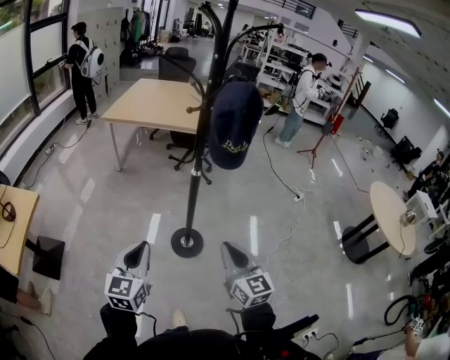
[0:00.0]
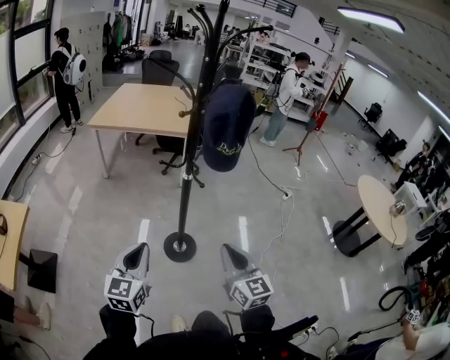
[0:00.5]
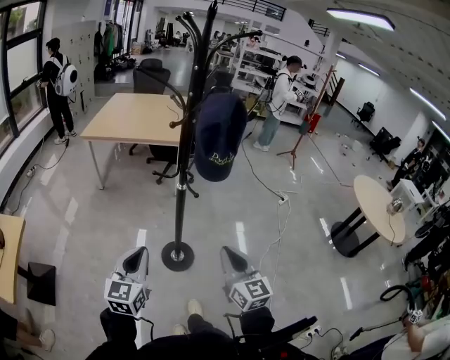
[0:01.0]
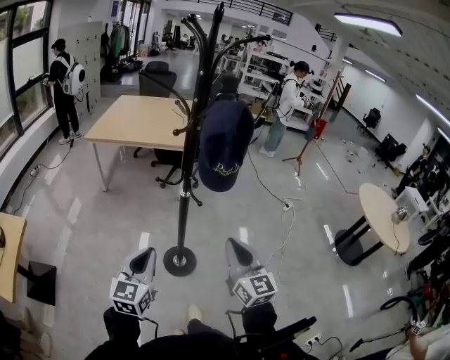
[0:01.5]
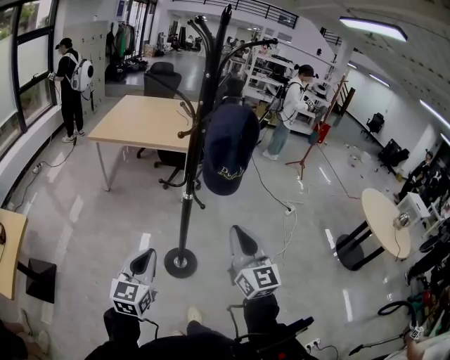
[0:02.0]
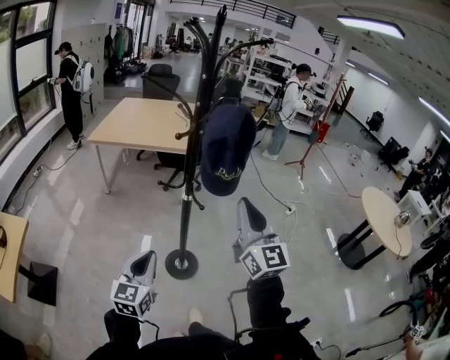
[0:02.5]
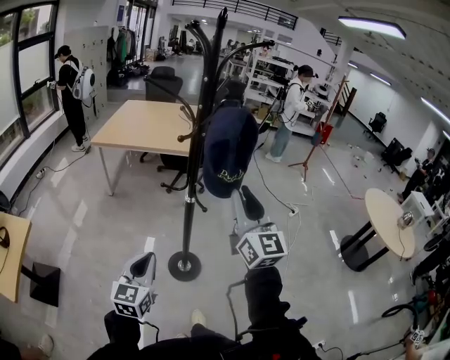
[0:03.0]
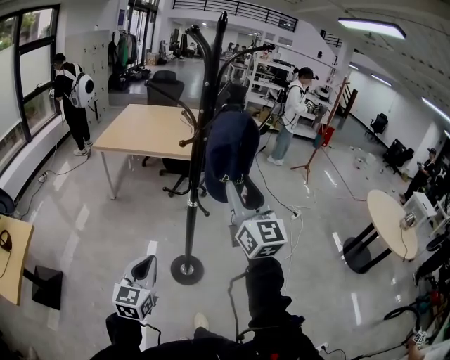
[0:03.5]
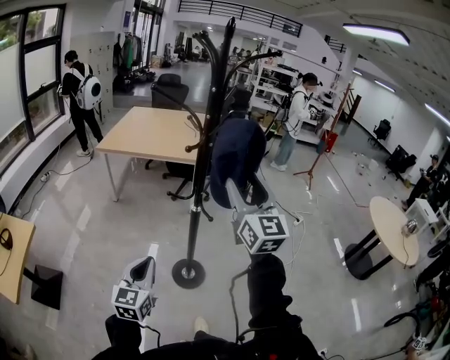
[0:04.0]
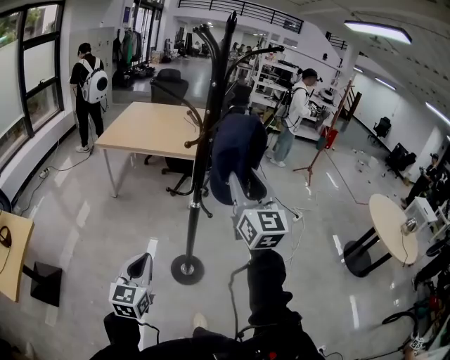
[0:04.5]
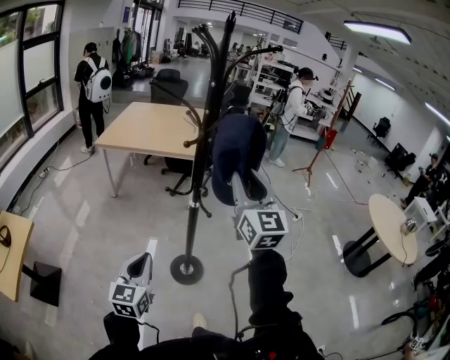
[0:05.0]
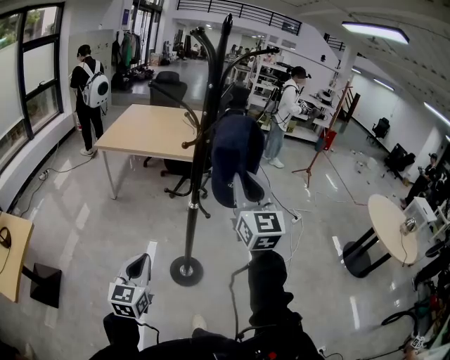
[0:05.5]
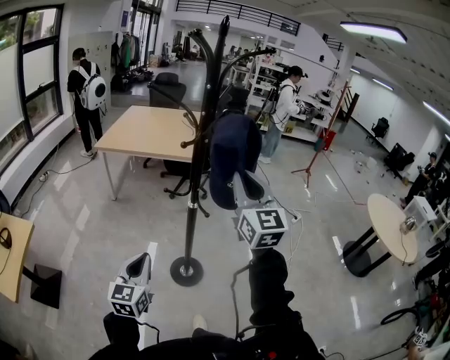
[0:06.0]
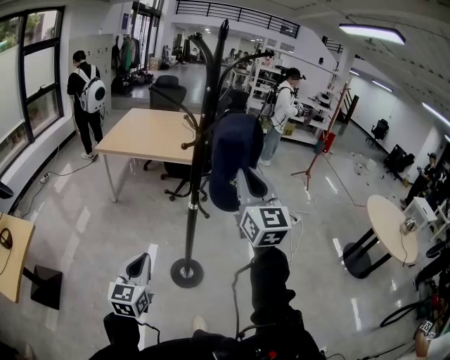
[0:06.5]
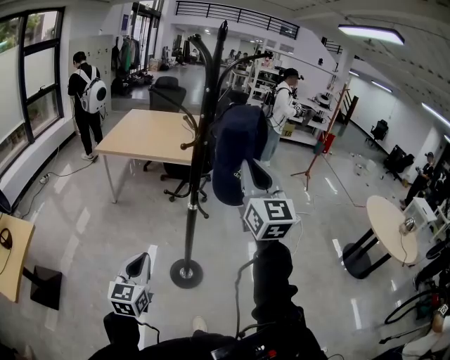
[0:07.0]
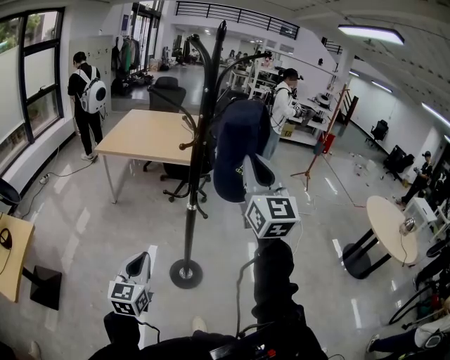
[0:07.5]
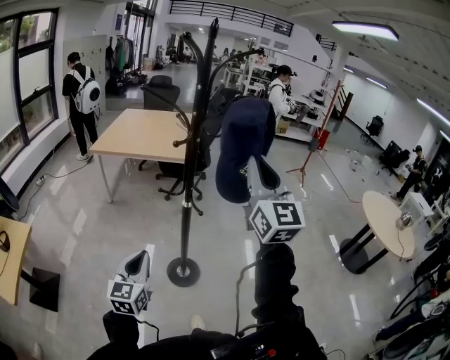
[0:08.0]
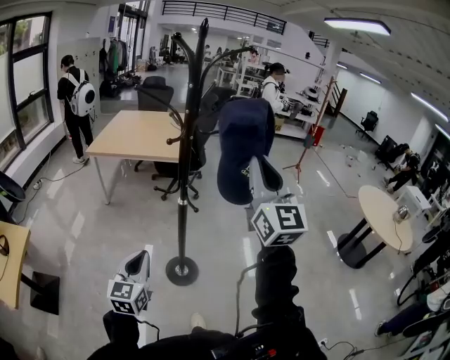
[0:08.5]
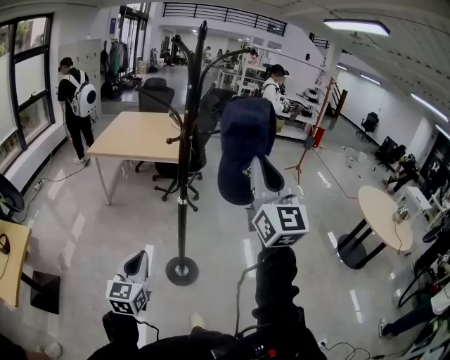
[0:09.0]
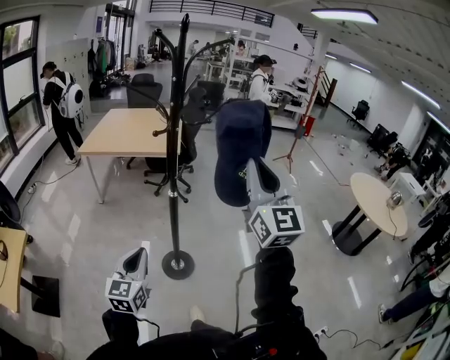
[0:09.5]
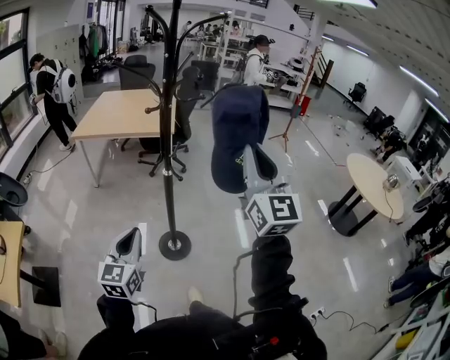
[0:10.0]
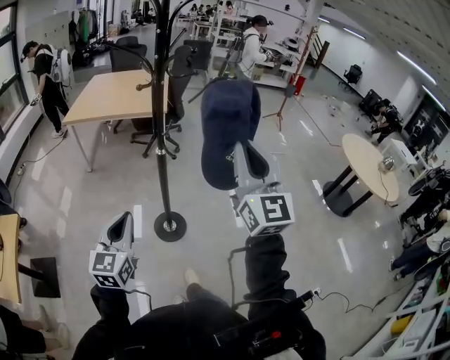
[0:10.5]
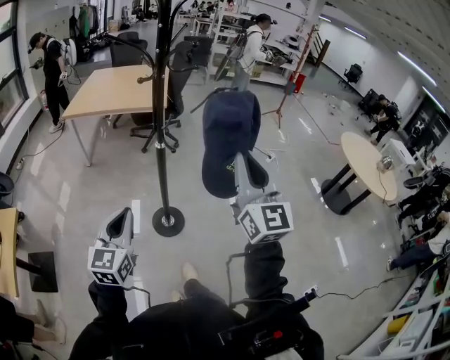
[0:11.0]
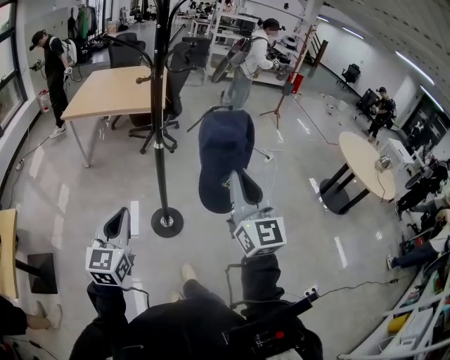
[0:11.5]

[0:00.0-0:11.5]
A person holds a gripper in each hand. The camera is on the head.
0:00.0 to 0:02.0: The right gripper goes some 15 cm upward and forward, while the left gripper heads forward, covering roughly 10 cm.
0:02.0 to 0:04.0: The right gripper goes approximately 15 cm upward and forward, and opens.
0:04.0 to 0:06.0: The right gripper closes.
0:06.0 to 0:07.5: The right gripper moves upward, roughly 5 cm.
0:07.5 to 0:09.5: The left gripper changes place by roughly 5 cm, while the right gripper travels backward and to the right by approximately 10 cm.
0:09.5 to 0:11.5: The right gripper shifts roughly 15 cm downward and backward.

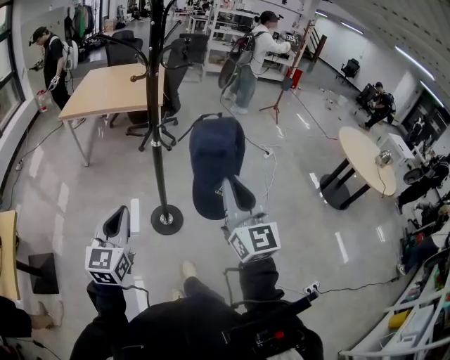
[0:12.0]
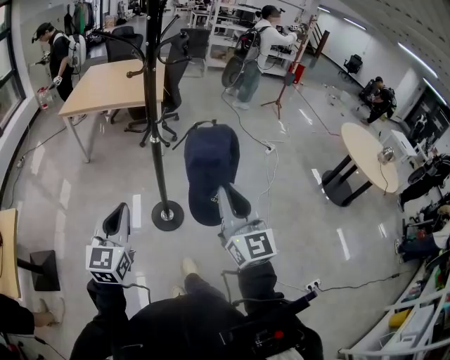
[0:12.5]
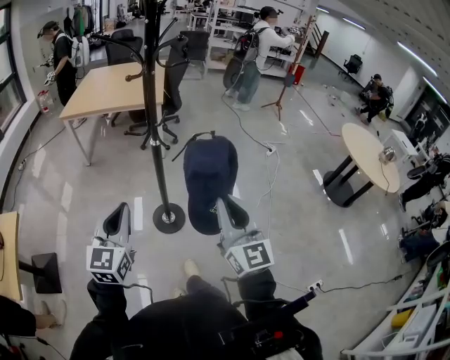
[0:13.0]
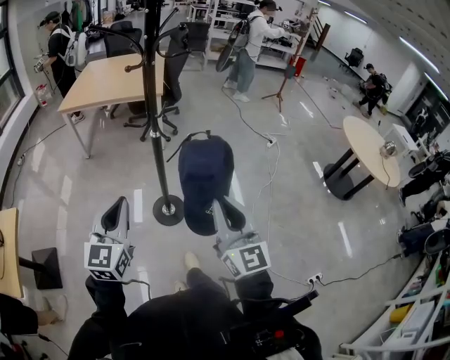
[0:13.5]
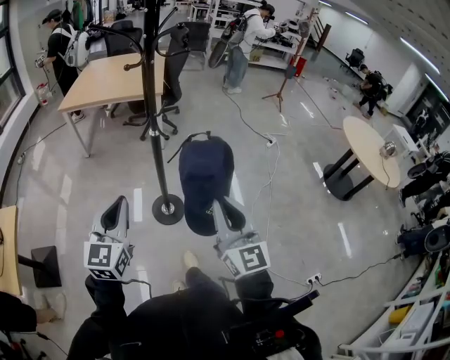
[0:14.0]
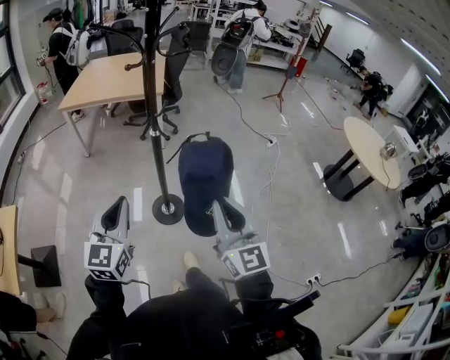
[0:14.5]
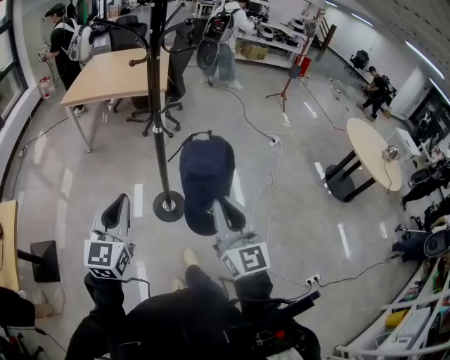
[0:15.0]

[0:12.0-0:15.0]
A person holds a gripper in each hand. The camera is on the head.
0:12.0 to 0:13.5: The right gripper heads downward, covering about 5 cm.
0:13.5 to 0:15.0: Both grippers stay about where they are.

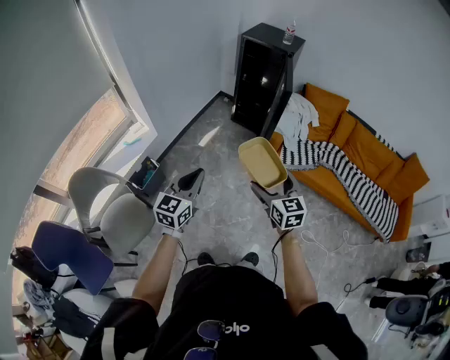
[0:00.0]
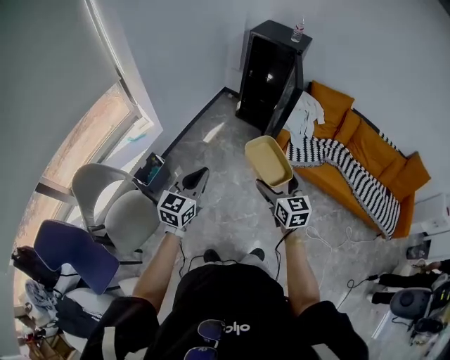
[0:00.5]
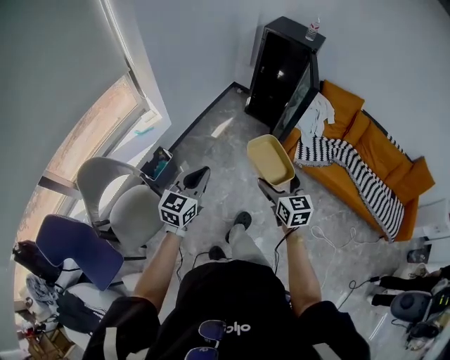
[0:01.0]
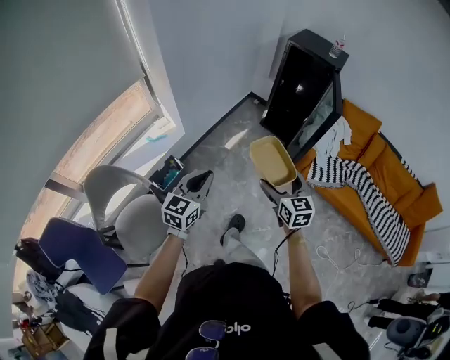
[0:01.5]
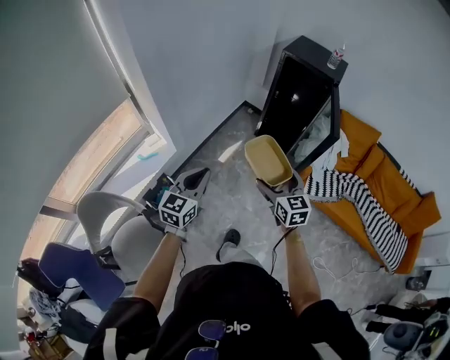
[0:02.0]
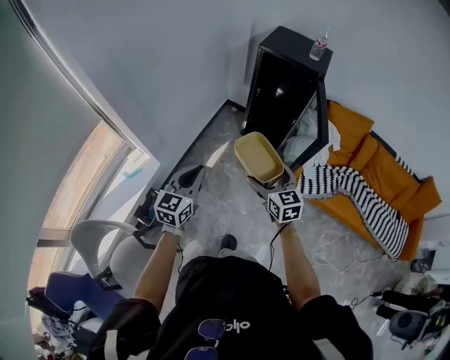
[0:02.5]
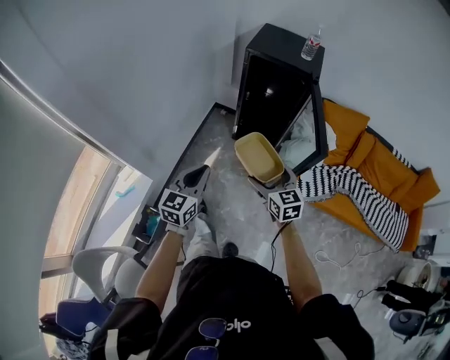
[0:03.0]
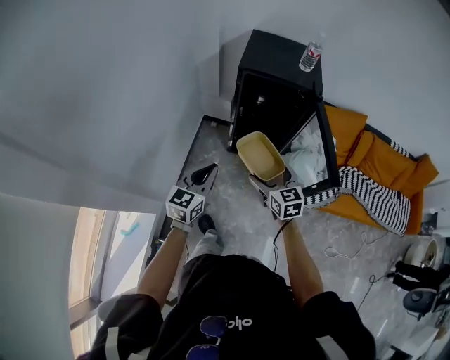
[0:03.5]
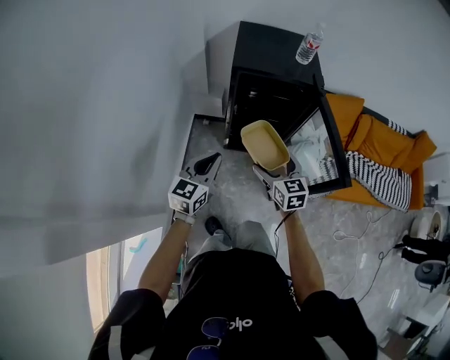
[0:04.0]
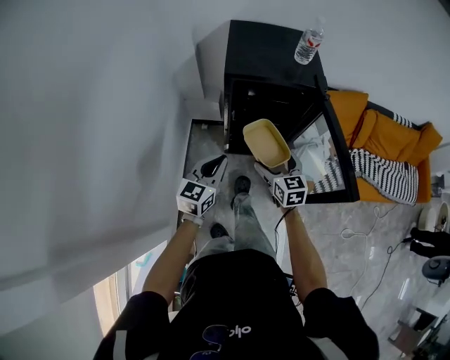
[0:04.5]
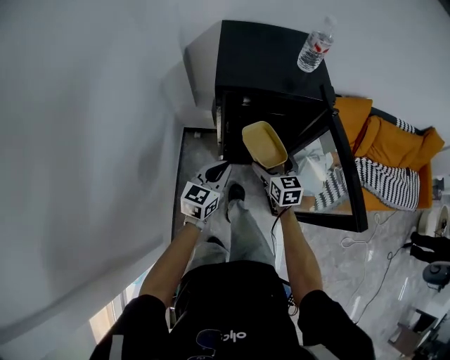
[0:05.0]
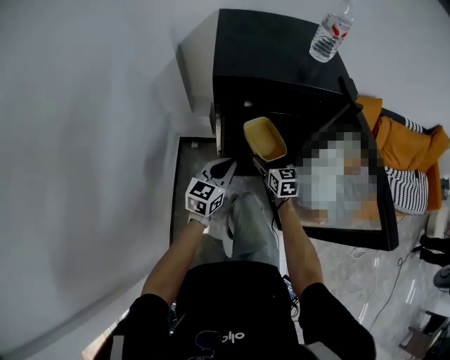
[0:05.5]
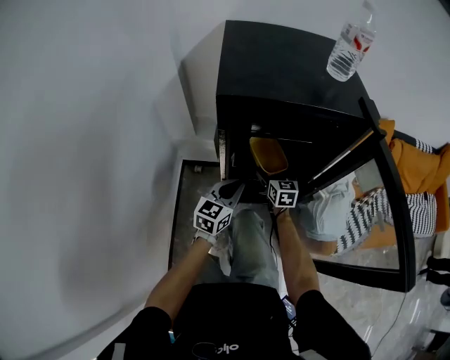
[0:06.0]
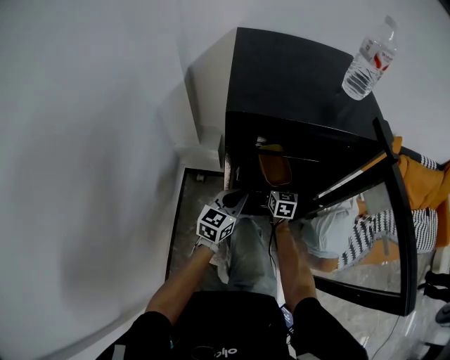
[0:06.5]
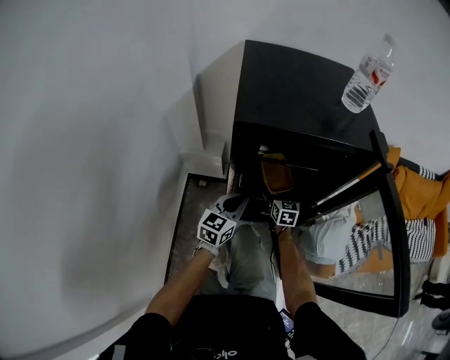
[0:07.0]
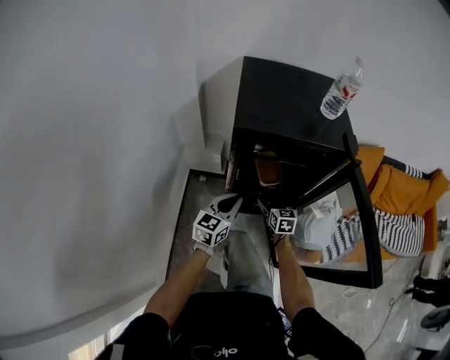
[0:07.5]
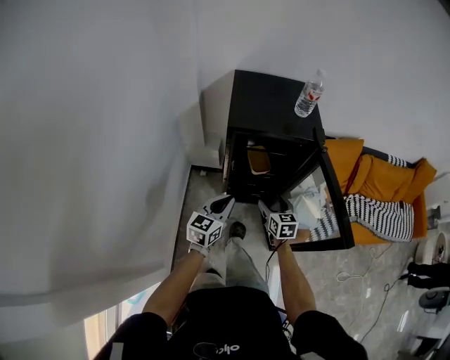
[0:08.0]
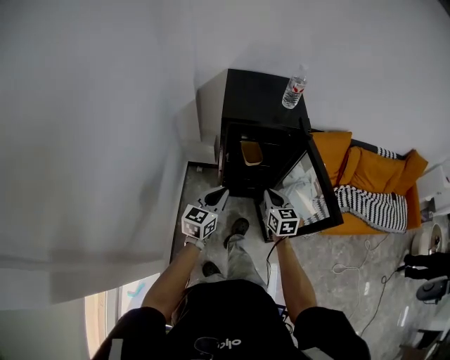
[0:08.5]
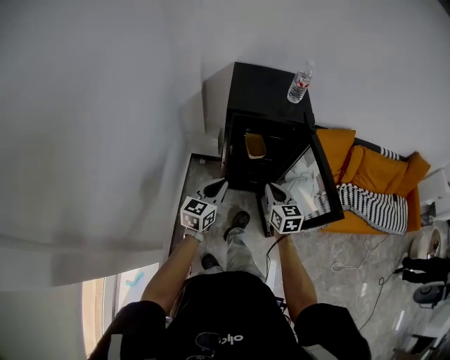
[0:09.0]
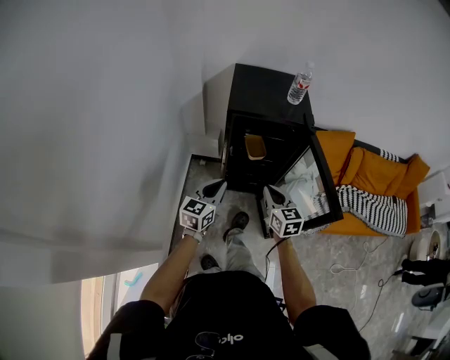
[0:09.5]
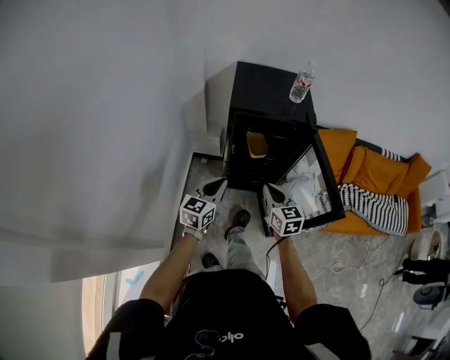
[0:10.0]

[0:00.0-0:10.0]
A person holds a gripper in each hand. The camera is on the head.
0:00.0 to 0:02.0: The two grippers go approximately 30 cm forward and to the left.
0:02.0 to 0:04.0: Both grippers are carried about 50 cm. The left gripper turns by some 30 degrees. Meanwhile the right gripper changes its angle by some 30 degrees.
0:04.0 to 0:06.0: The left gripper moves downward and forward, approximately 40 cm. The right gripper travels forward and downward by roughly 50 cm.
0:06.0 to 0:08.0: Both grippers move upward and backward, roughly 30 cm.
0:08.0 to 0:10.0: The right gripper shifts about 15 cm upward and backward, and closes, while the left gripper travels backward and upward by roughly 10 cm.

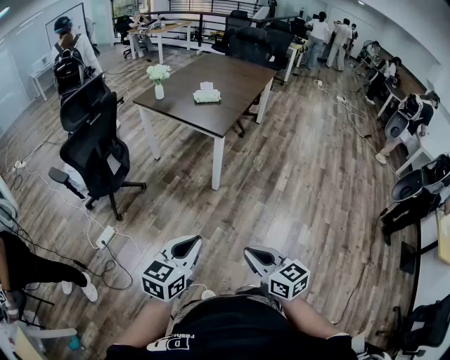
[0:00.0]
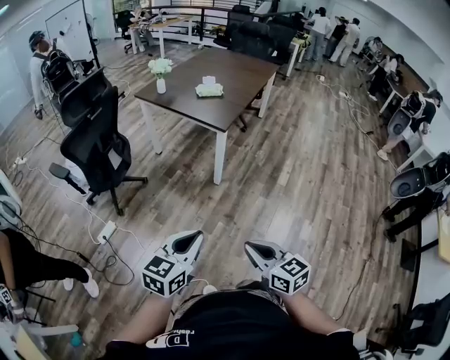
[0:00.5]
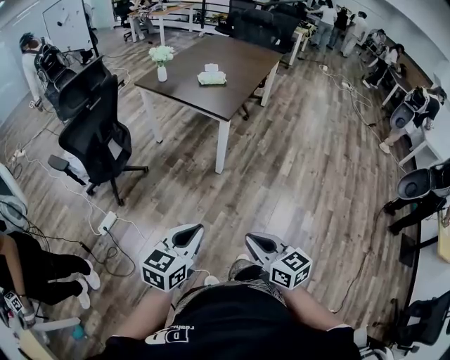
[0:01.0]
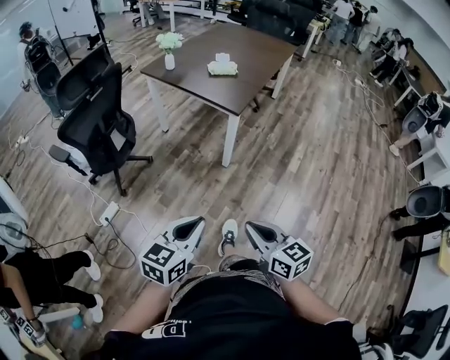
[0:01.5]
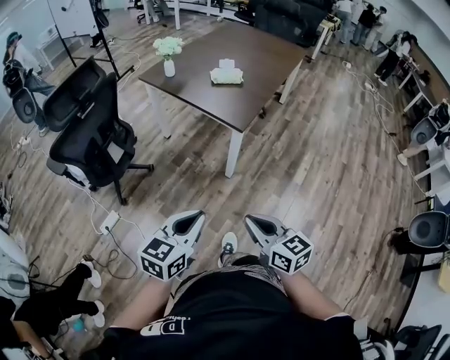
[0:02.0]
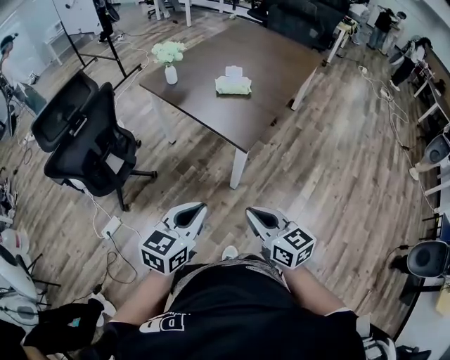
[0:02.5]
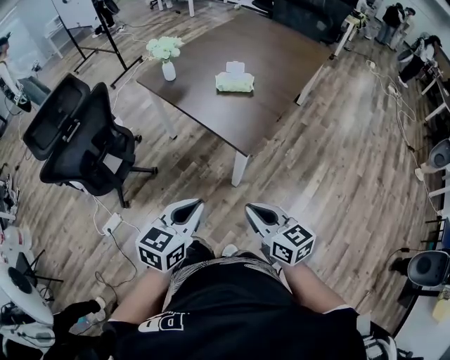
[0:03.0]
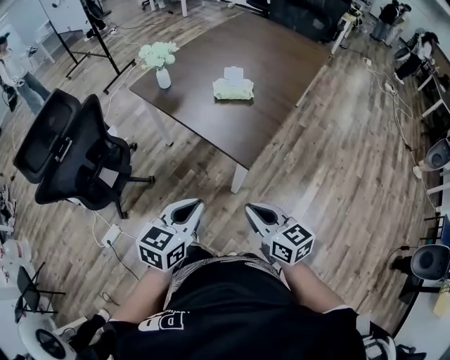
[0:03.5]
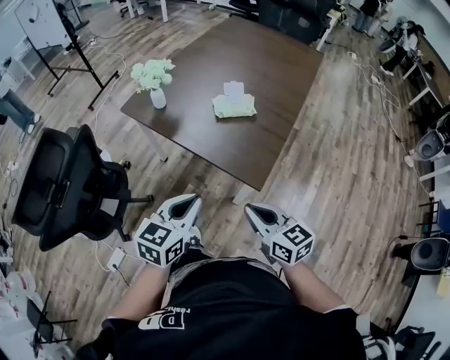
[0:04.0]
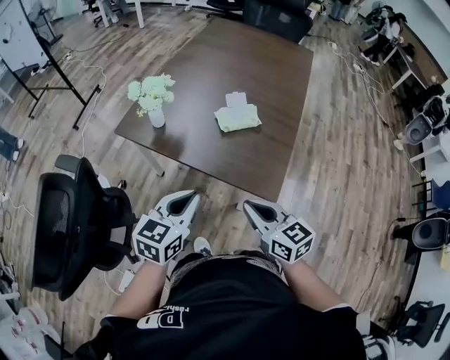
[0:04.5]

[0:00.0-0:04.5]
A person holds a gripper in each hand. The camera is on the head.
0:00.0 to 0:02.0: Both grippers move forward, about 25 cm.
0:02.0 to 0:04.5: The two grippers travel together, forward, some 50 cm.
